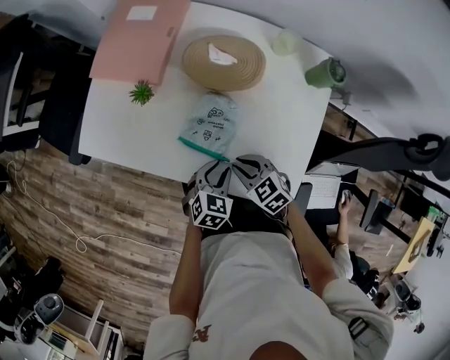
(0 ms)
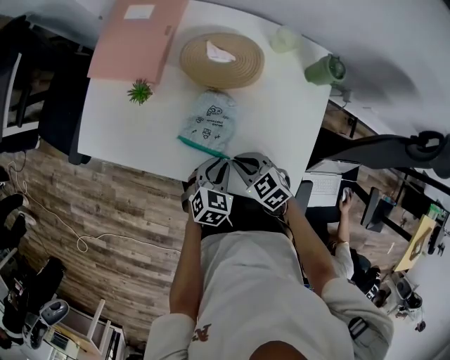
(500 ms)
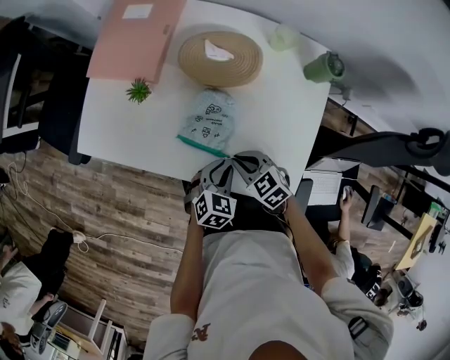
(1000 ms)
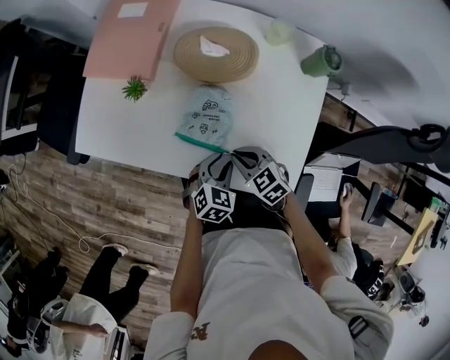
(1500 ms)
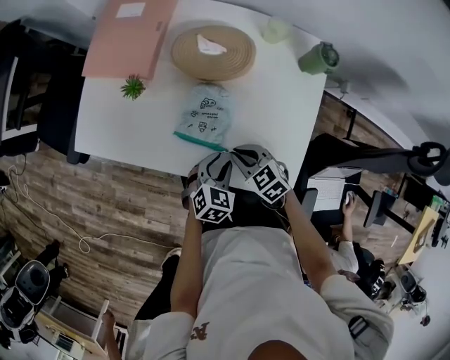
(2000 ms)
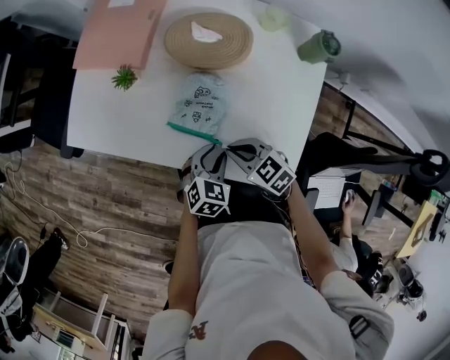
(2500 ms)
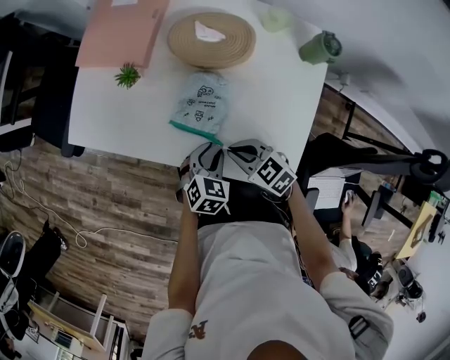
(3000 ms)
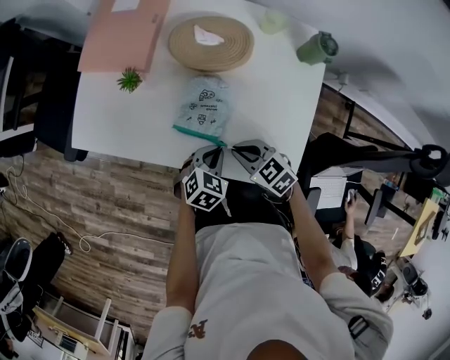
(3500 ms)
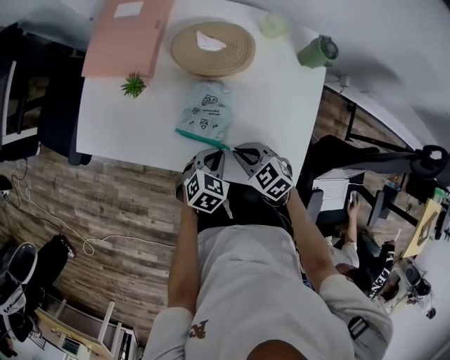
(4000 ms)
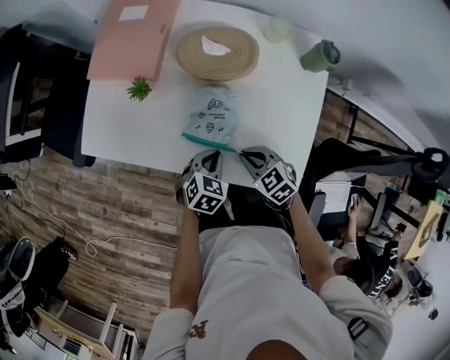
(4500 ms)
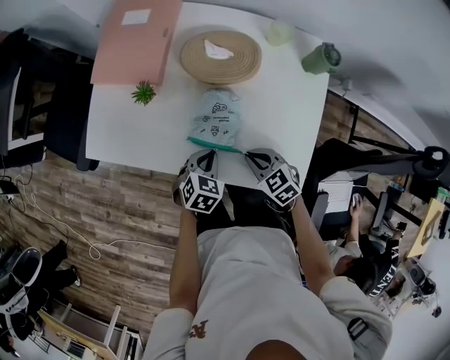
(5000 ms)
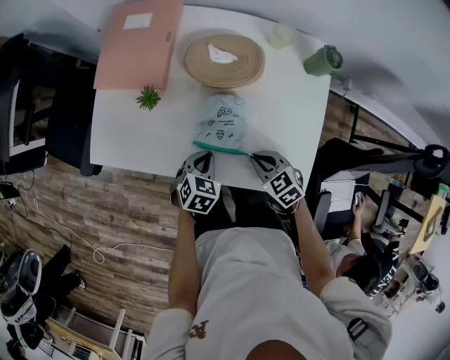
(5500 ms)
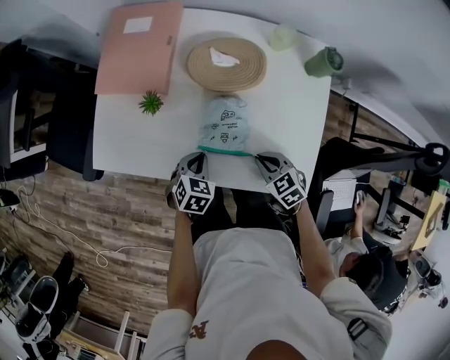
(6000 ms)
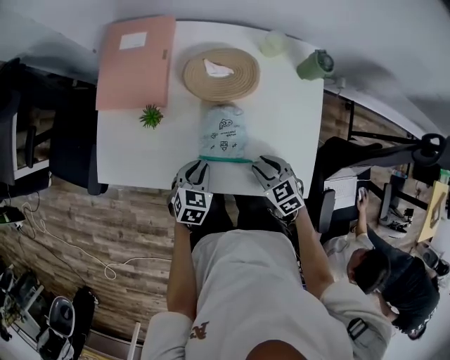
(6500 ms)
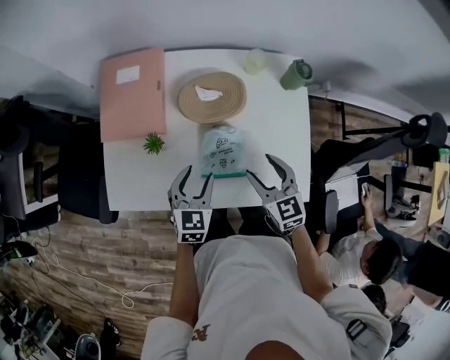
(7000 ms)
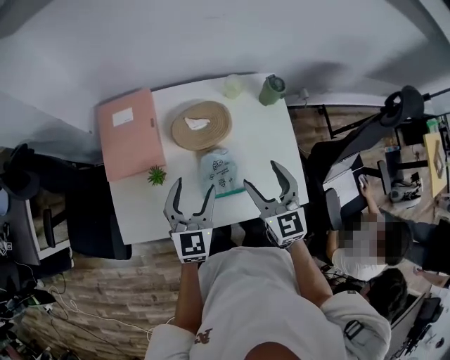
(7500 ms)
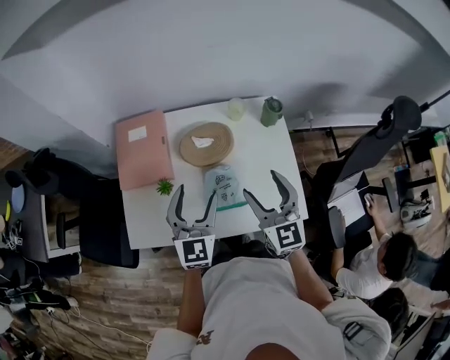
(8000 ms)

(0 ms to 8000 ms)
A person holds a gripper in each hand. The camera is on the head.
0 ms - 2000 ms: The grippers make only small movements.
2000 ms - 4000 ms: The left gripper closes up.
4000 ms - 6000 ms: The left gripper moves to the left and forward, about 10 cm.
6000 ms - 8000 ms: The grippers both shift upward by approximately 30 cm. The left gripper tips its fingers upward by roughly 50 degrees, and opens its fingers. Meanwhile the right gripper tips its fingers upward by approximately 50 degrees, and opens its fingers.

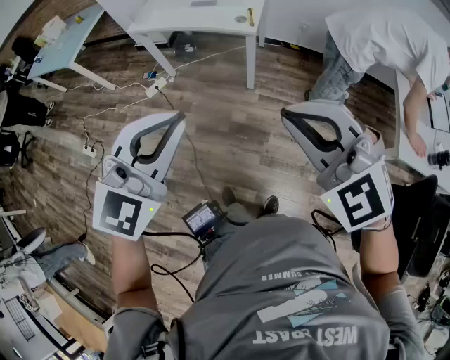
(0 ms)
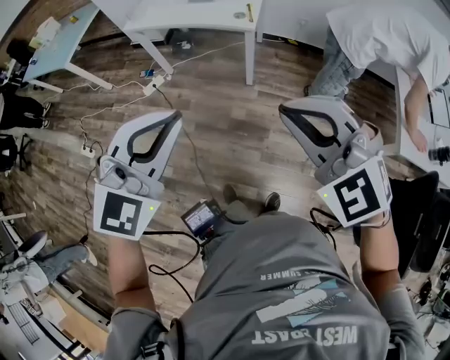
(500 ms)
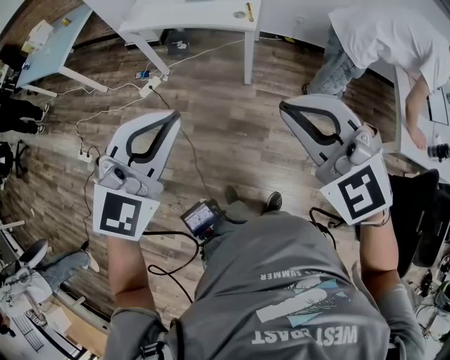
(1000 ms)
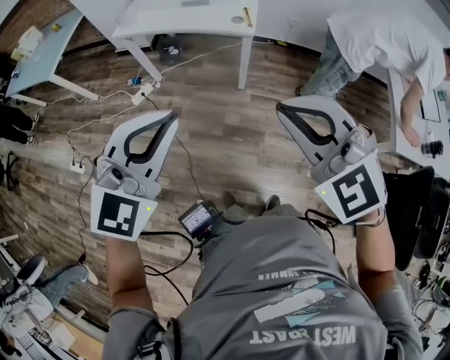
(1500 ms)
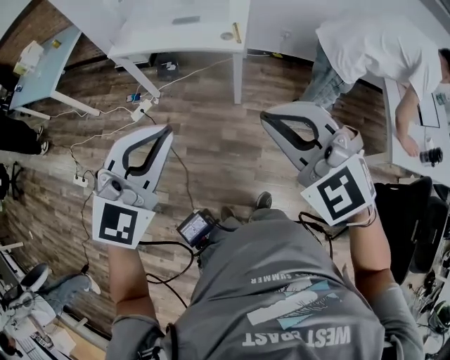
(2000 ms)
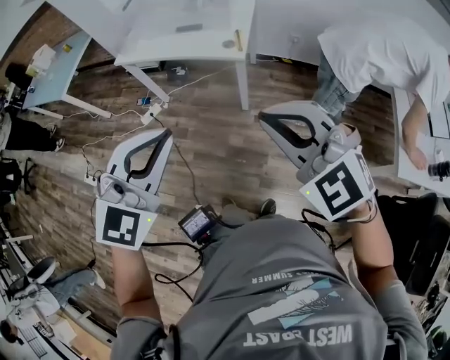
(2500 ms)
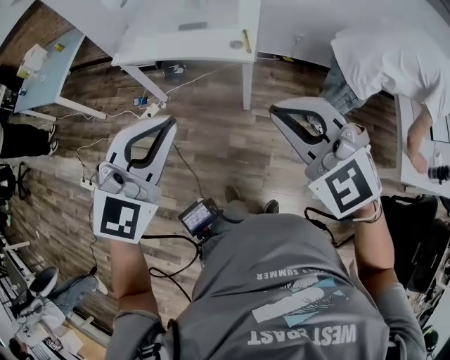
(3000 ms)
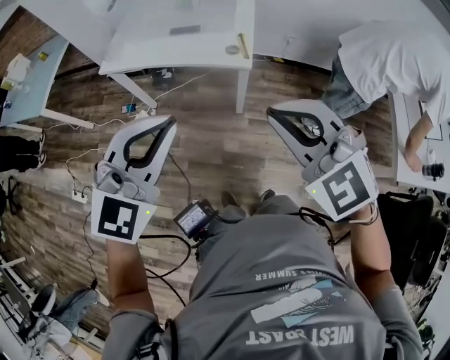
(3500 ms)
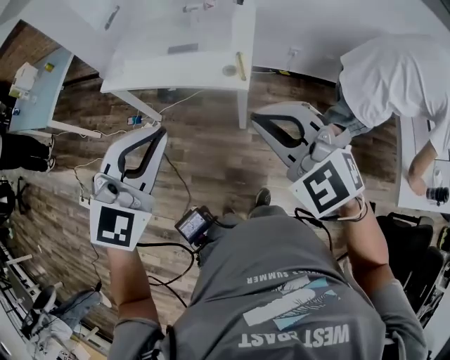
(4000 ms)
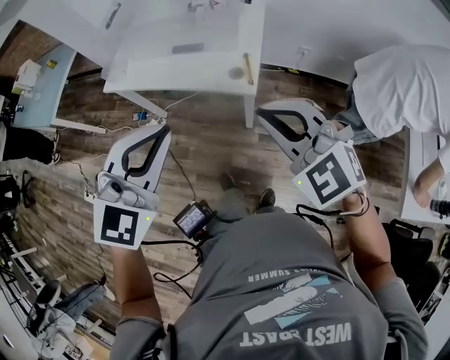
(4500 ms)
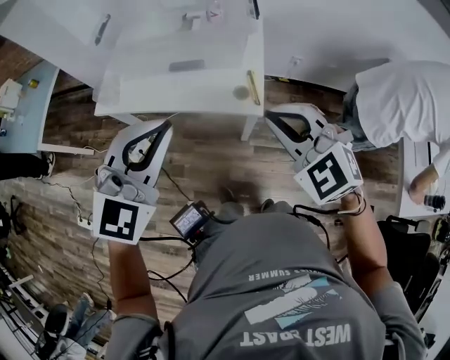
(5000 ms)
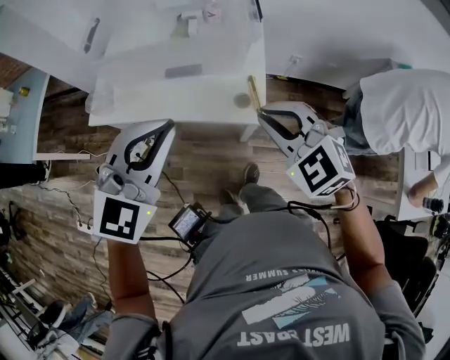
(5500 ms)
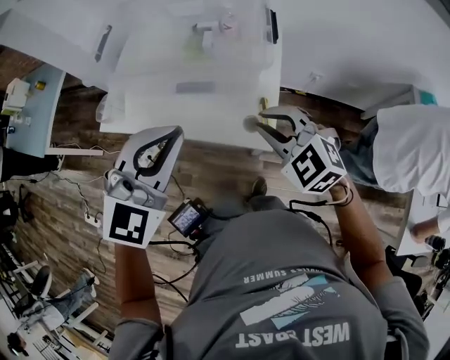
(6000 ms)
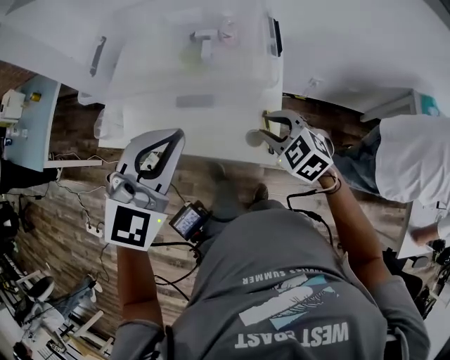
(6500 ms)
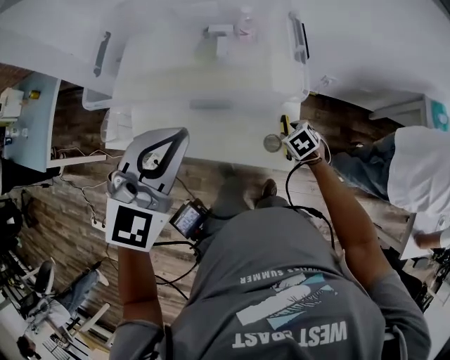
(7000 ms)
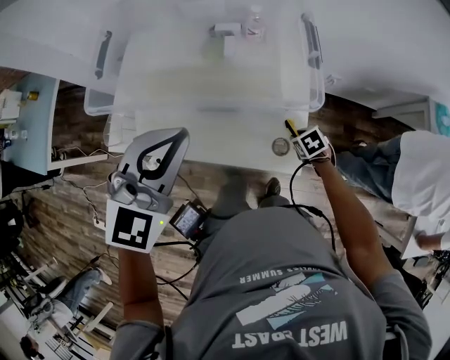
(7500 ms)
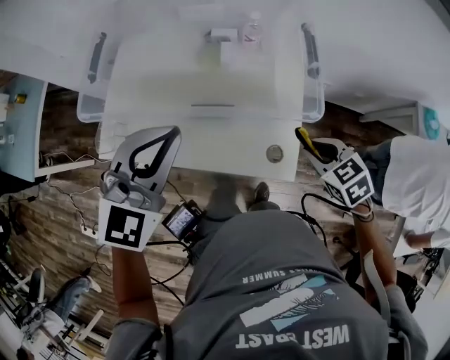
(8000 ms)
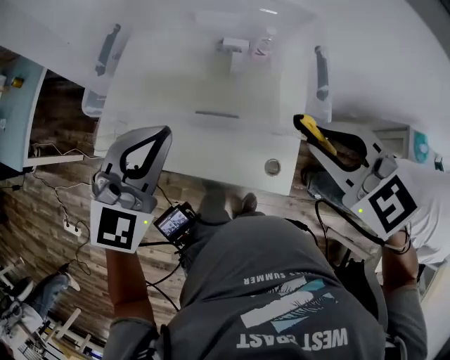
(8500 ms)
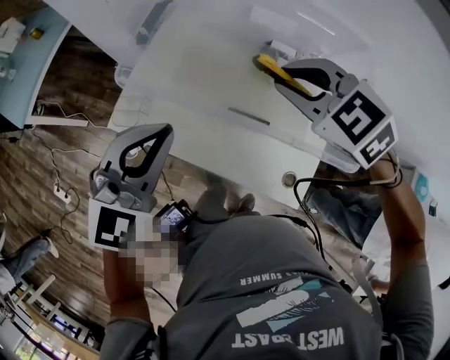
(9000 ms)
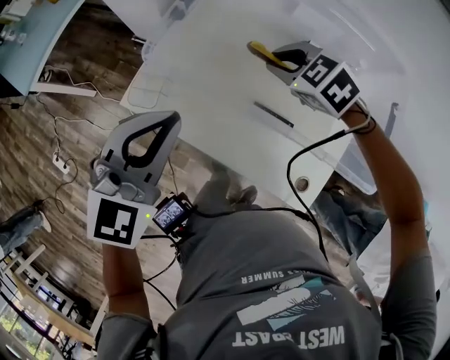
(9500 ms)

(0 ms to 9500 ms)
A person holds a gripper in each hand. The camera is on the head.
0 ms - 2000 ms: The two grippers go some 10 cm forward.
2000 ms - 4000 ms: Both grippers move forward, about 25 cm.
4000 ms - 5500 ms: The grippers both shift forward by roughly 20 cm.
5500 ms - 7500 ms: The left gripper changes place by roughly 20 cm. Meanwhile the right gripper moves downward, approximately 35 cm, tips its fingers downward by roughly 40 degrees, and opens, then closes again.
7500 ms - 9500 ms: The left gripper shifts by some 20 cm, and rotates some 20 degrees, while the right gripper moves approximately 50 cm, and rolls counterclockwise, seen from behind, by roughly 50 degrees.

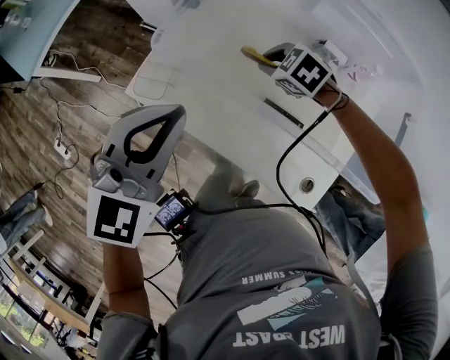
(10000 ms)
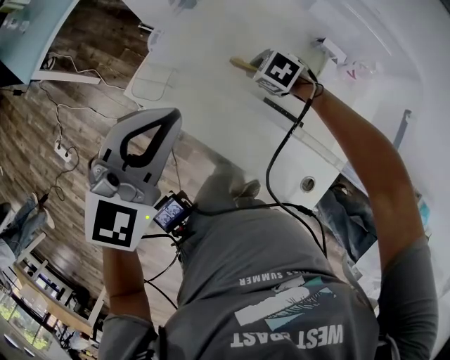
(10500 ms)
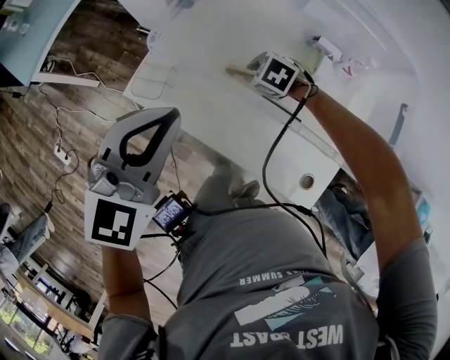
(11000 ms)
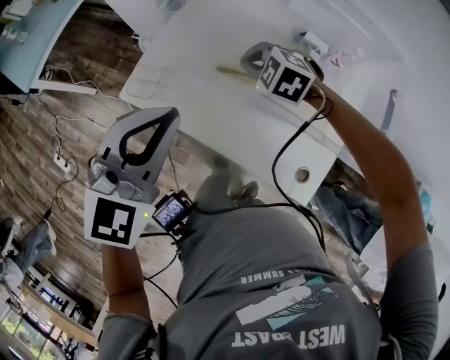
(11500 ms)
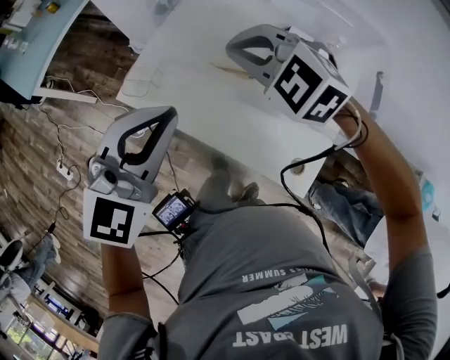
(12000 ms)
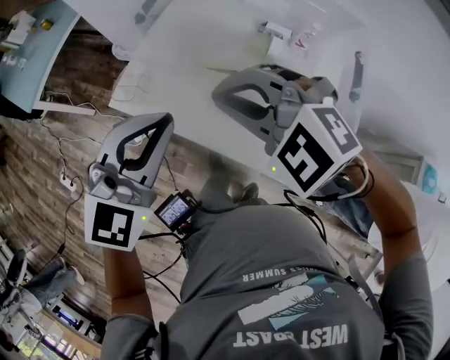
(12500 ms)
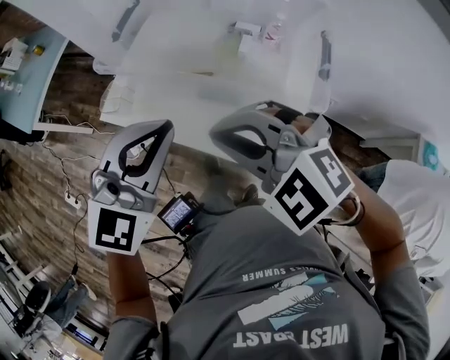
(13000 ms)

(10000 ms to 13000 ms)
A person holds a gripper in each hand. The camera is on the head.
10000 ms - 11500 ms: The right gripper shifts by about 5 cm.
11500 ms - 13000 ms: The right gripper goes some 30 cm upward and backward, and turns by roughly 20 degrees; the left gripper is displaced backward and upward by some 10 cm.

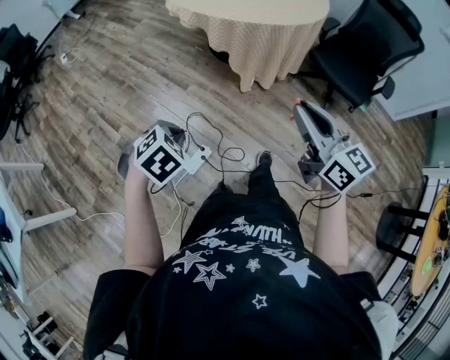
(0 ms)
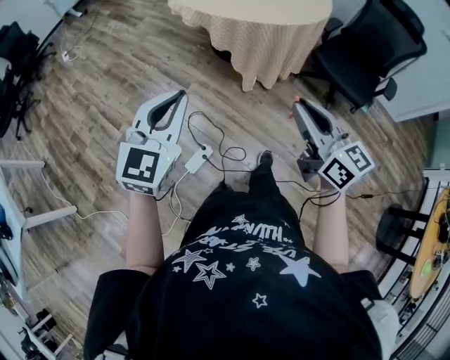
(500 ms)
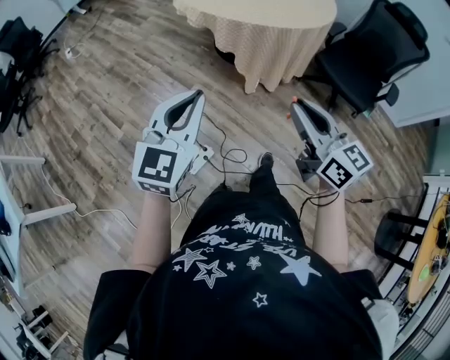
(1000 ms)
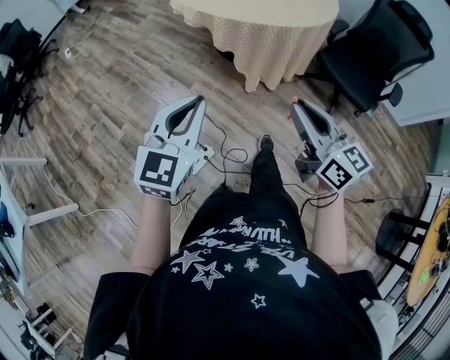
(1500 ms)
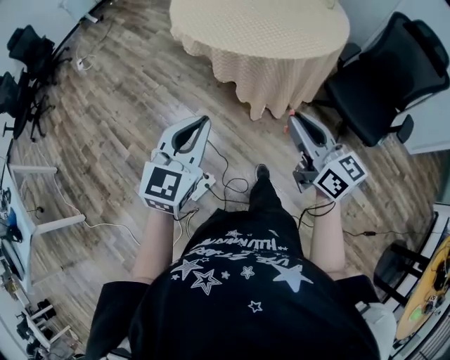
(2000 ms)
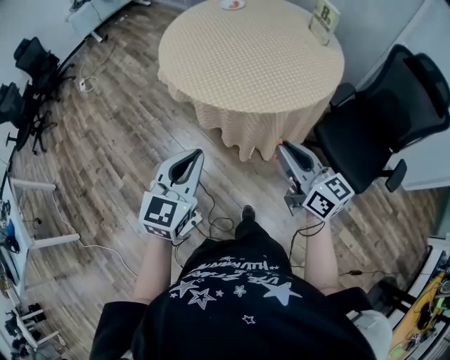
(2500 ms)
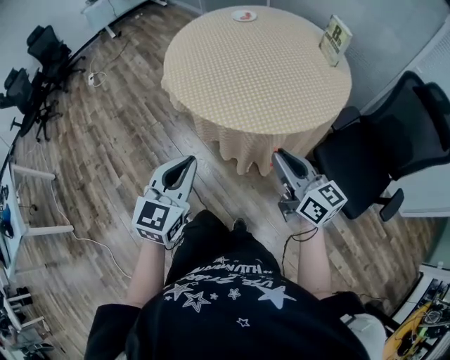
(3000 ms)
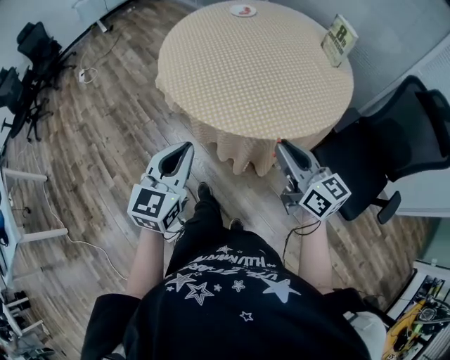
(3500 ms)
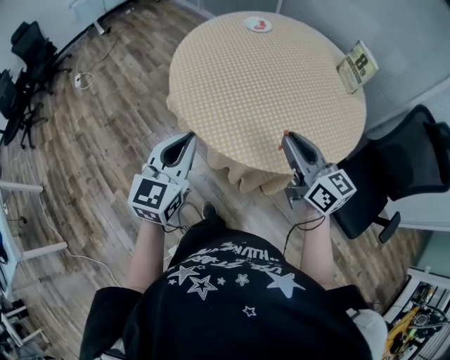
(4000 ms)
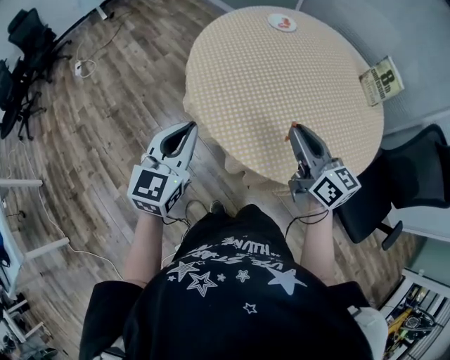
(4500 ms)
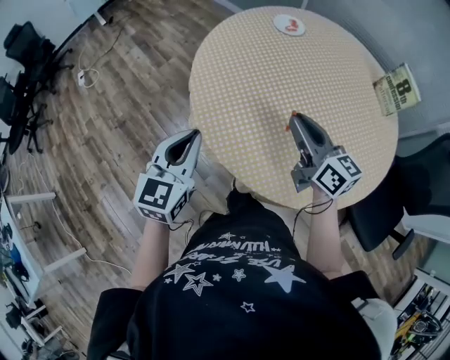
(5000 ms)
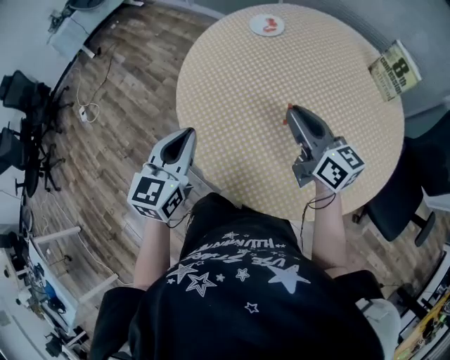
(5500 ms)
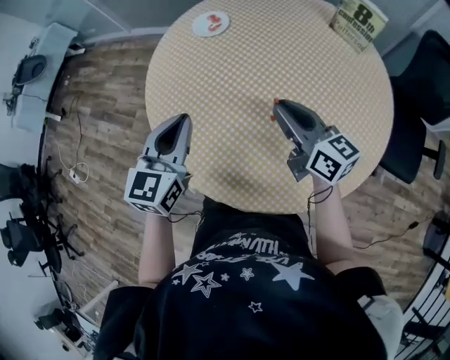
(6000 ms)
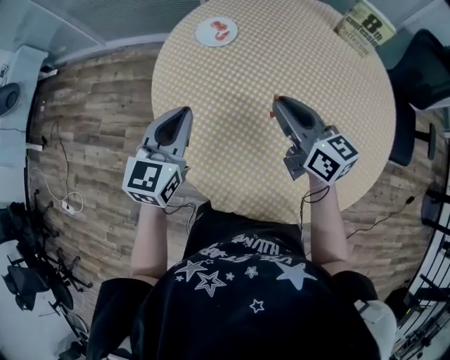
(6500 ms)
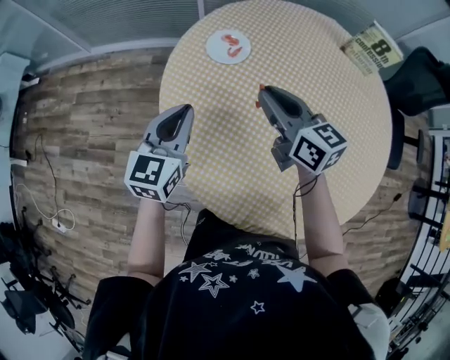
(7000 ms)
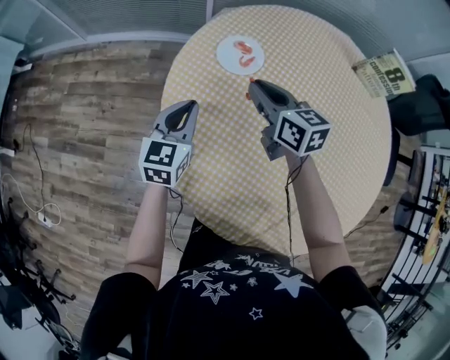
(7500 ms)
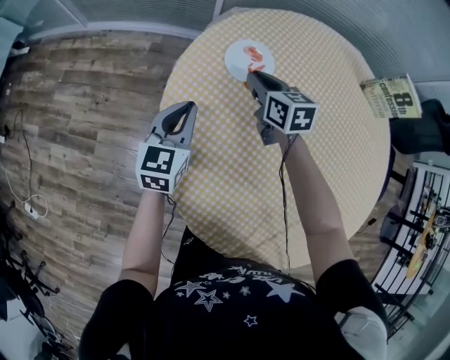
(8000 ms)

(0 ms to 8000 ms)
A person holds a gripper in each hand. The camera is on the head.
0 ms - 2000 ms: The left gripper heads forward, to the right and upward, covering approximately 25 cm, and points its fingers approximately 50 degrees further upward. The right gripper goes approximately 20 cm forward.
2000 ms - 4000 ms: The grippers both shift forward by approximately 40 cm.
4000 ms - 6000 ms: Both grippers travel together forward, approximately 35 cm. The right gripper turns by approximately 20 degrees. The left gripper turns by roughly 30 degrees.
6000 ms - 8000 ms: The left gripper goes some 40 cm forward, to the left and downward. The right gripper is displaced forward and to the left by approximately 40 cm, and changes its angle by about 30 degrees.
